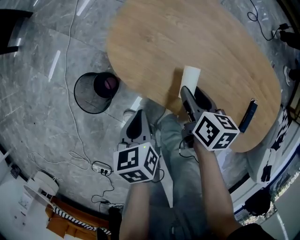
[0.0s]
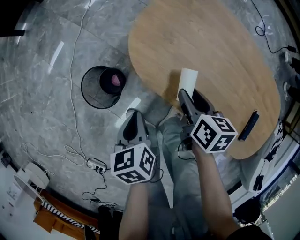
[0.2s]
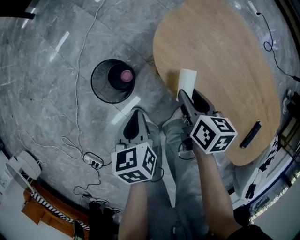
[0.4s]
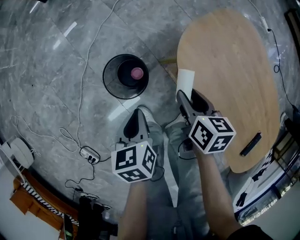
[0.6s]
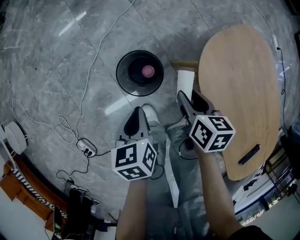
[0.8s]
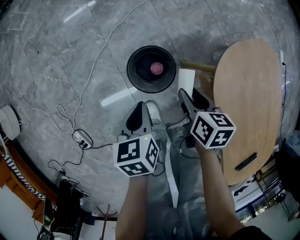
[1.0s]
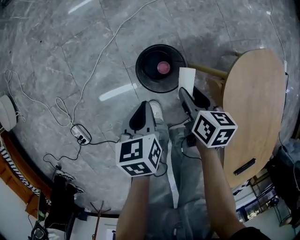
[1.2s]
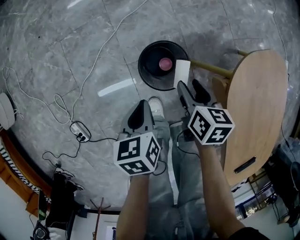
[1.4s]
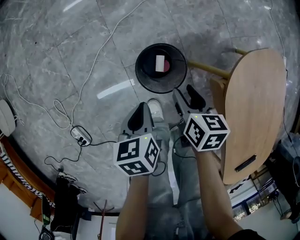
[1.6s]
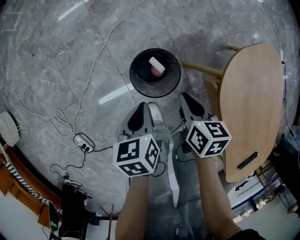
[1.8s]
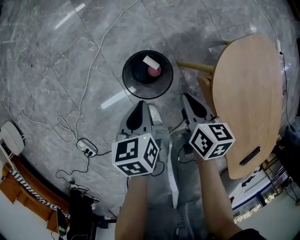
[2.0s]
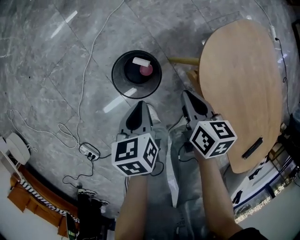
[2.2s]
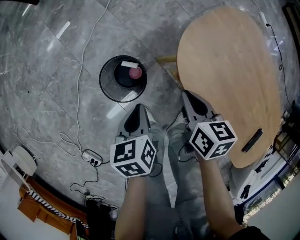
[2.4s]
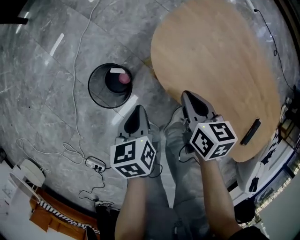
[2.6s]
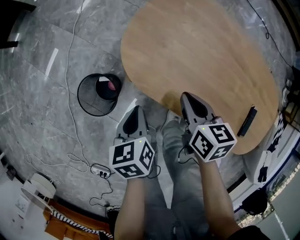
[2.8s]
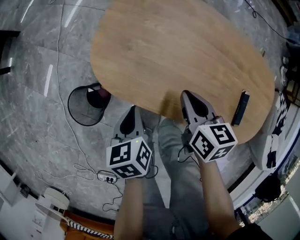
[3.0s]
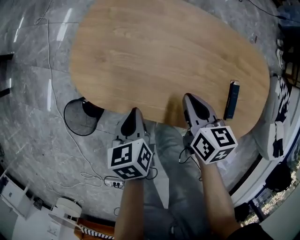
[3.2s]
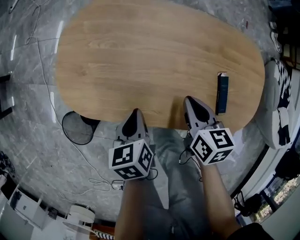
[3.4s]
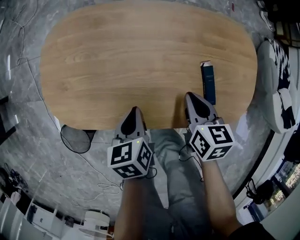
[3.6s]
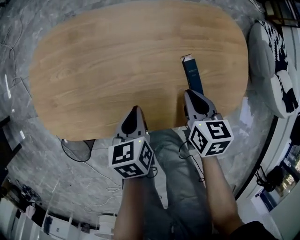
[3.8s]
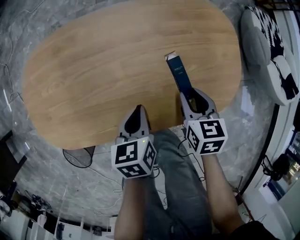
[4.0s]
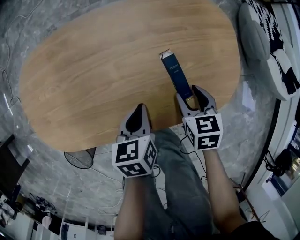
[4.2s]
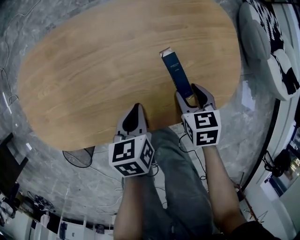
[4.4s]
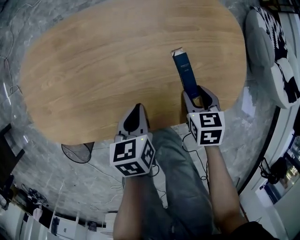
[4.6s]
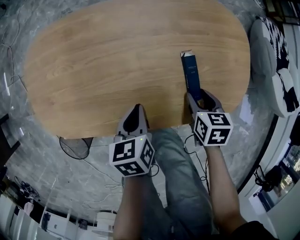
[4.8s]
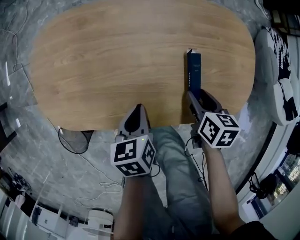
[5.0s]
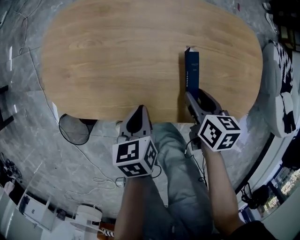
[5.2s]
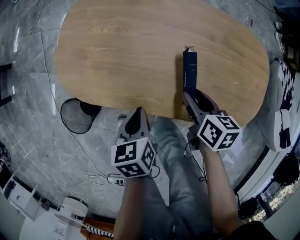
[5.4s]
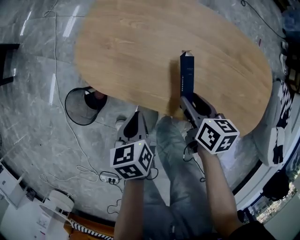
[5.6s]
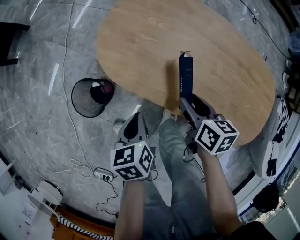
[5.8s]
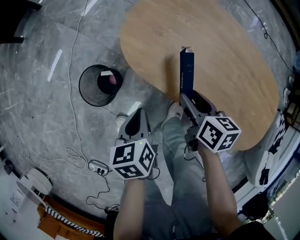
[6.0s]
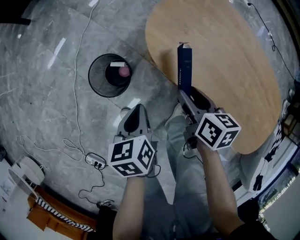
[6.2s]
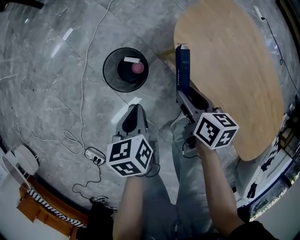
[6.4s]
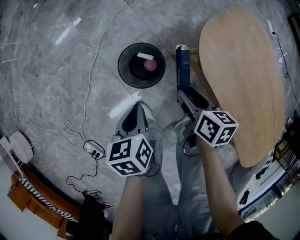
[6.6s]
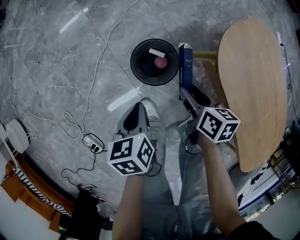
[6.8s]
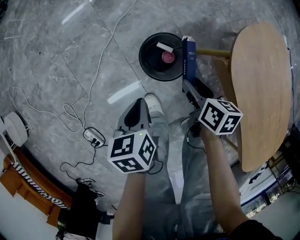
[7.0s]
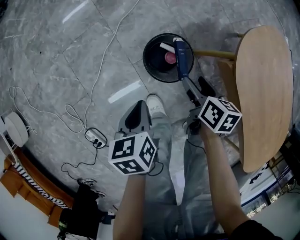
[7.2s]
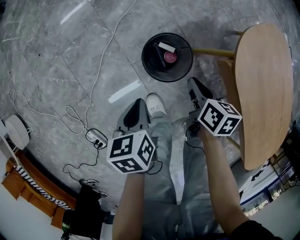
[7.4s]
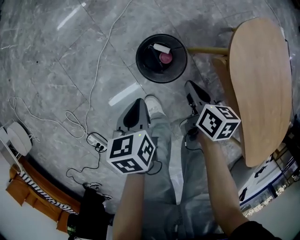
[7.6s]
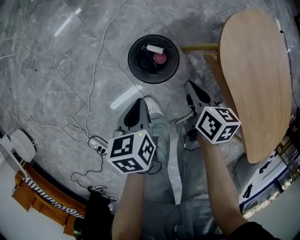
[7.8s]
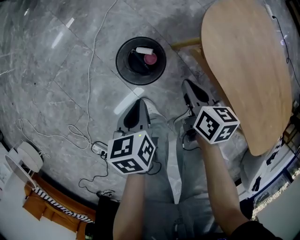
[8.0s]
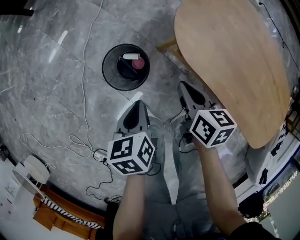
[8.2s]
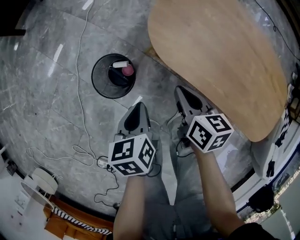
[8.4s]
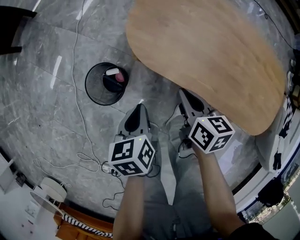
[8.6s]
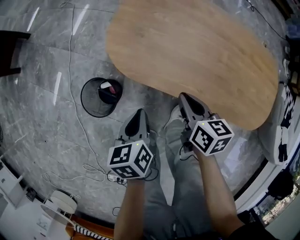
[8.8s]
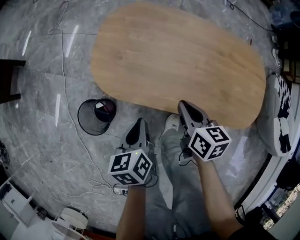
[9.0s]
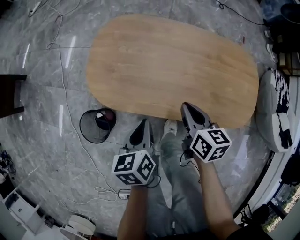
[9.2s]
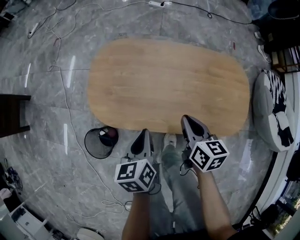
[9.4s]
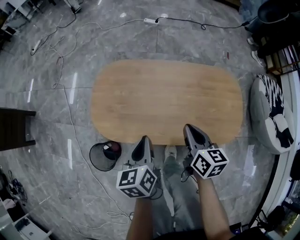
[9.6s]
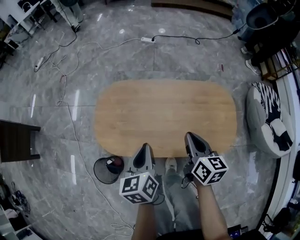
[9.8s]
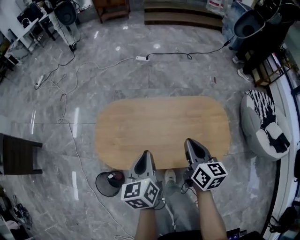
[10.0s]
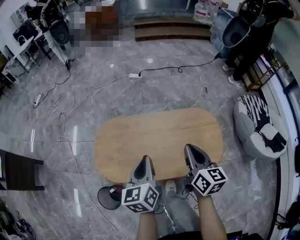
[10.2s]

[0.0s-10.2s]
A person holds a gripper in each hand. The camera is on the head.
0.0s to 1.4s: The left gripper ends up some 35 cm from where it was, and changes its angle by some 40 degrees. The right gripper moves approximately 40 cm, and changes its angle by about 40 degrees.
1.4s to 3.0s: The left gripper moves some 40 cm, and rotates approximately 40 degrees. The right gripper ends up roughly 40 cm from where it was, rotates approximately 40 degrees, and closes its fingers.
3.0s to 4.4s: The right gripper changes place by roughly 40 cm, swivels approximately 30 degrees, and opens; the left gripper changes place by some 35 cm, and changes its angle by roughly 40 degrees.
4.4s to 5.8s: The left gripper shifts by roughly 35 cm, and turns by approximately 40 degrees. Meanwhile the right gripper moves roughly 35 cm, and rotates roughly 40 degrees.
5.8s to 7.2s: The pair of grippers is taken roughly 40 cm. The left gripper changes its angle by roughly 30 degrees; the right gripper turns by roughly 30 degrees.
7.2s to 8.8s: The right gripper changes place by roughly 35 cm, rotates some 30 degrees, and closes. The left gripper moves roughly 35 cm, and rotates some 40 degrees.
8.8s to 10.2s: The two grippers go some 35 cm upward. The left gripper turns by approximately 30 degrees. Meanwhile the right gripper swivels about 40 degrees.

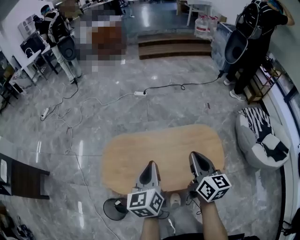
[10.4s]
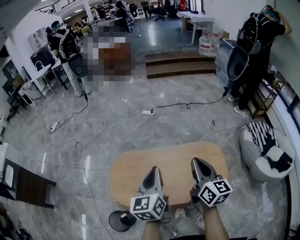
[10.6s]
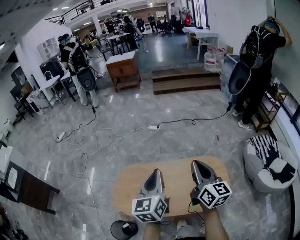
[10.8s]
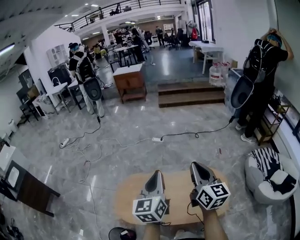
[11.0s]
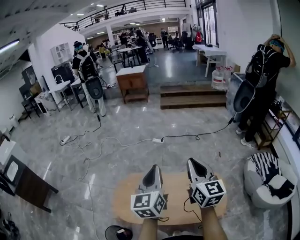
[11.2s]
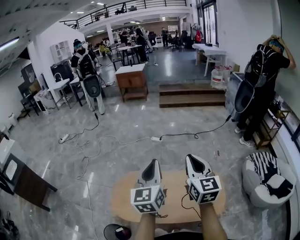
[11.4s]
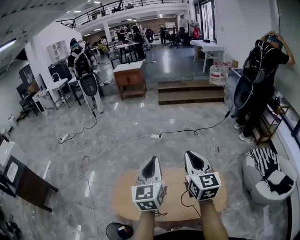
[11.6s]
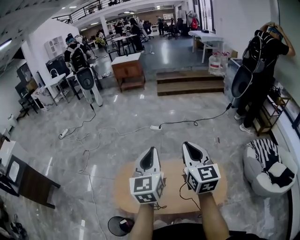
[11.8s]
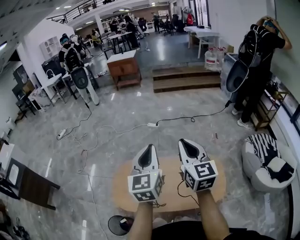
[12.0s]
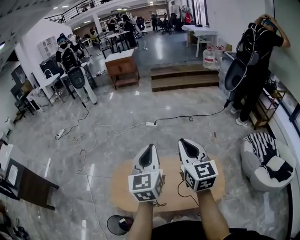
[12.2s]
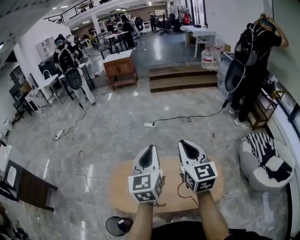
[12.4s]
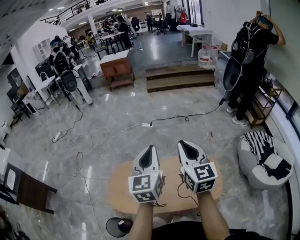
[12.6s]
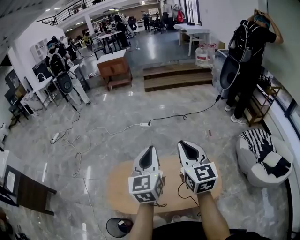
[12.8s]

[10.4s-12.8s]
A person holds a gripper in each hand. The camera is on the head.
10.4s to 11.6s: Both grippers move upward, approximately 20 cm. The right gripper rotates roughly 30 degrees; the left gripper changes its angle by some 30 degrees.
11.6s to 12.8s: The right gripper moves roughly 5 cm, while the left gripper goes some 5 cm to the right.

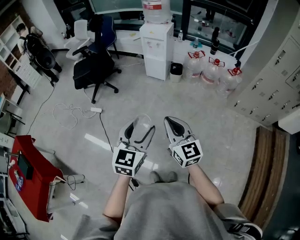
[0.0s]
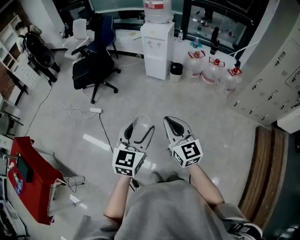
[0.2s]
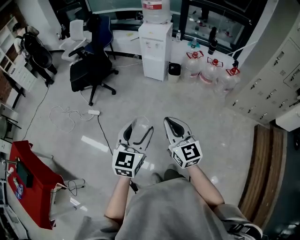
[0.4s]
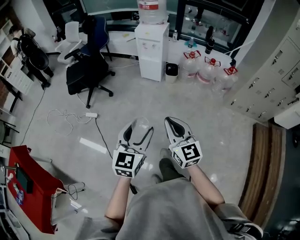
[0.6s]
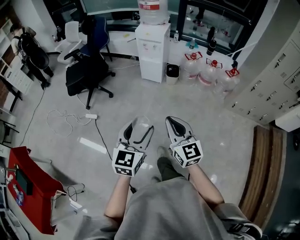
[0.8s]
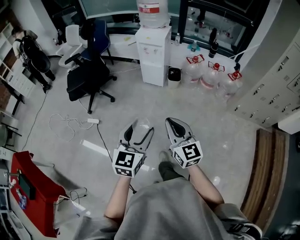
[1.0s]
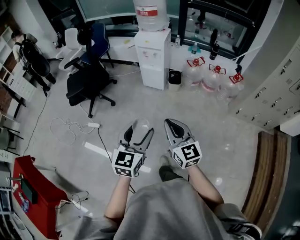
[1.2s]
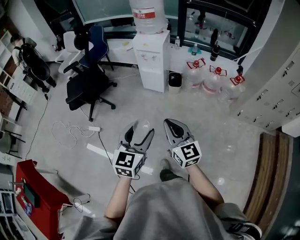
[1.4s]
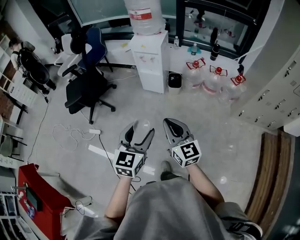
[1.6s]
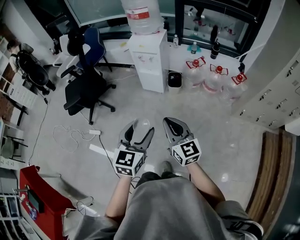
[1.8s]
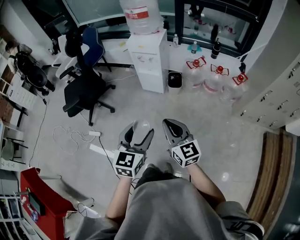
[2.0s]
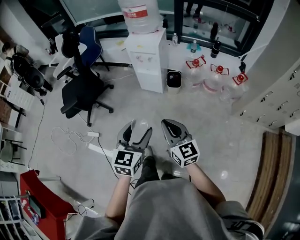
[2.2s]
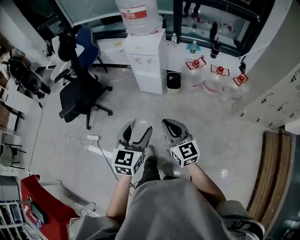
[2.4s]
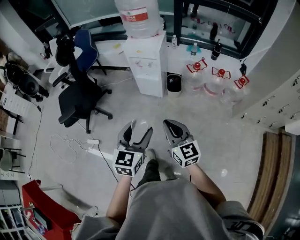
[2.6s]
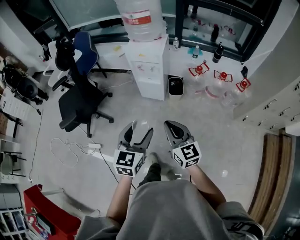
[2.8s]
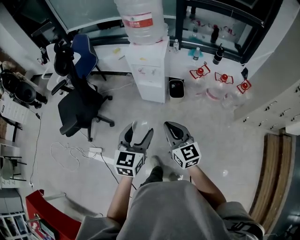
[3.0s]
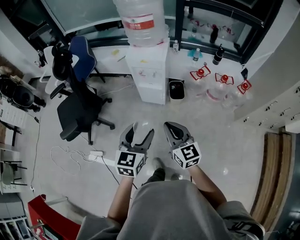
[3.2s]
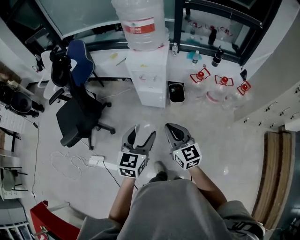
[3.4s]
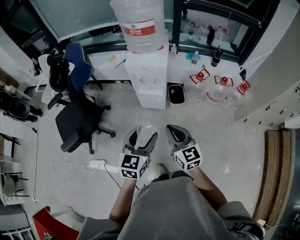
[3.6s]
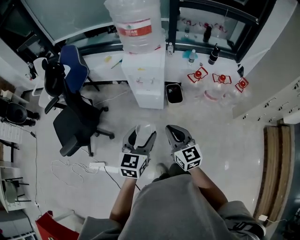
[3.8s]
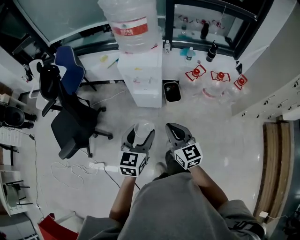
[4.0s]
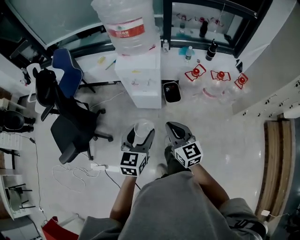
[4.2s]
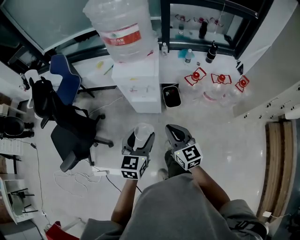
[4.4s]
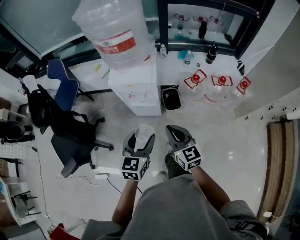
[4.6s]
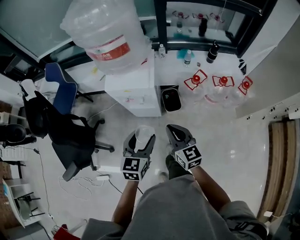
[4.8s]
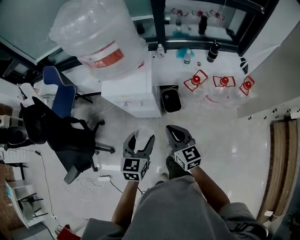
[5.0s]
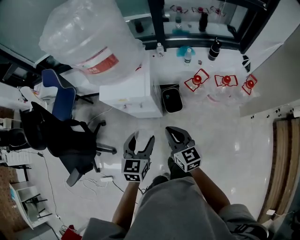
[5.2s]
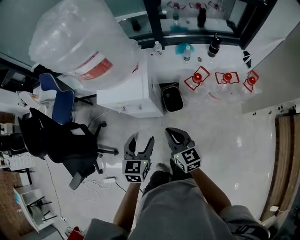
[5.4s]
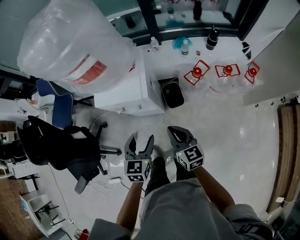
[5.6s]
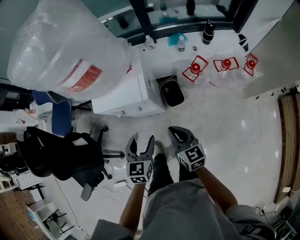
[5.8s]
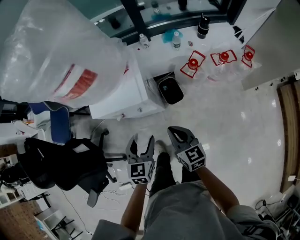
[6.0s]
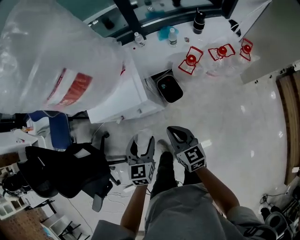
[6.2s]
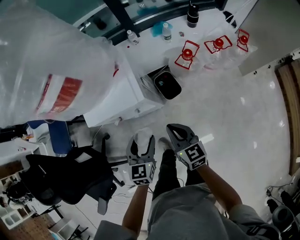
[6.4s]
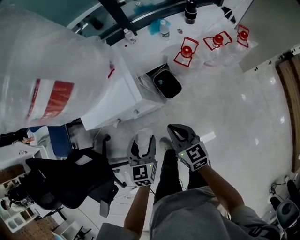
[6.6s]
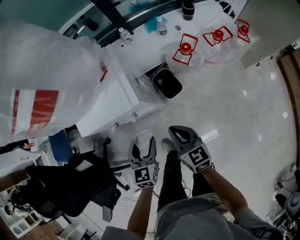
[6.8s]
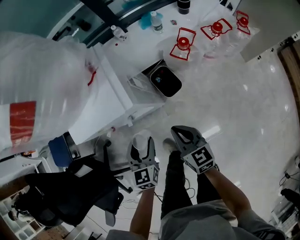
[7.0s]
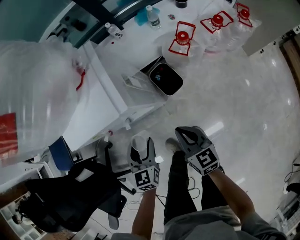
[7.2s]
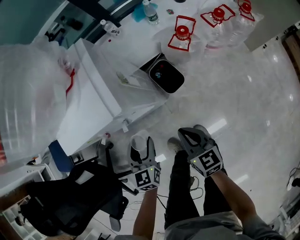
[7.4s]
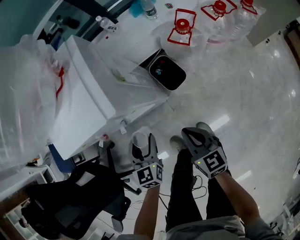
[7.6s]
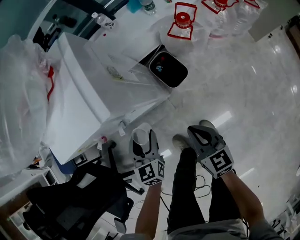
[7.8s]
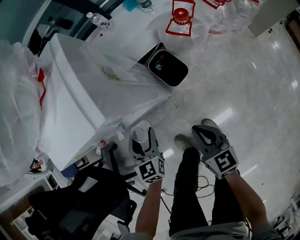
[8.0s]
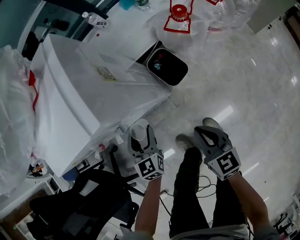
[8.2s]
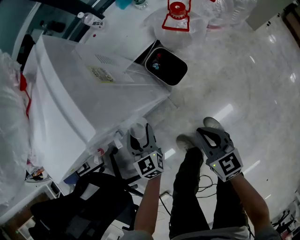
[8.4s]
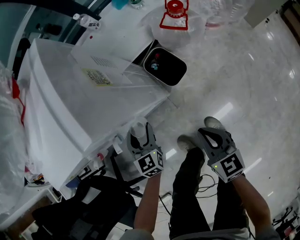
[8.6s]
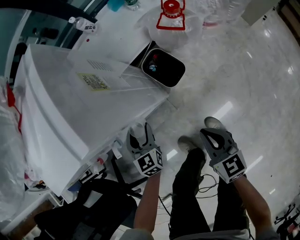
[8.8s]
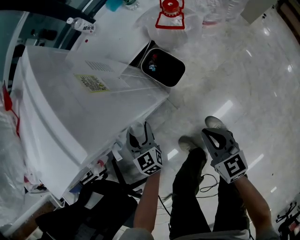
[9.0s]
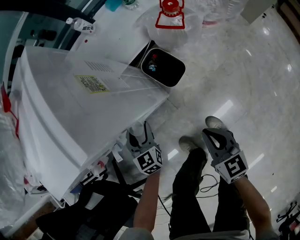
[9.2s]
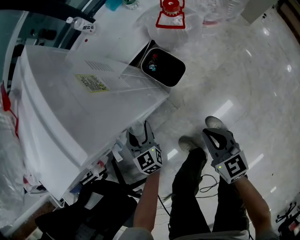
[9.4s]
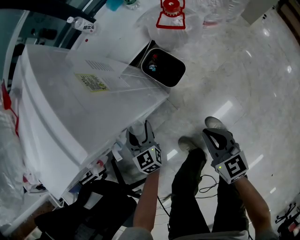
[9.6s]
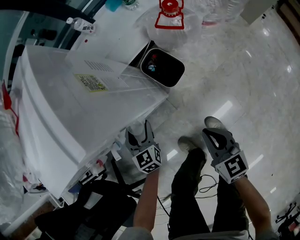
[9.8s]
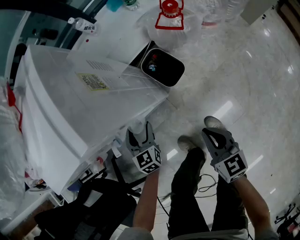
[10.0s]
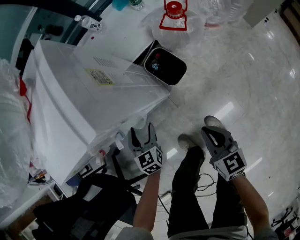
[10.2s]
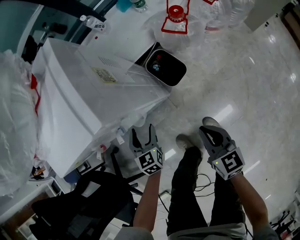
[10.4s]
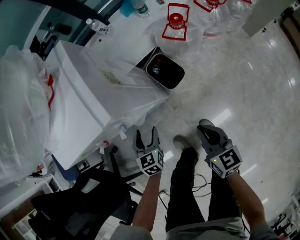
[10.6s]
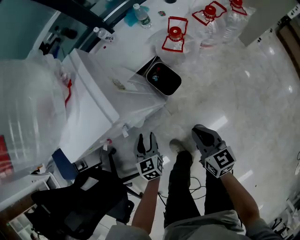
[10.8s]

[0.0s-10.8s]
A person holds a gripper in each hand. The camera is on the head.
0.0s to 1.6s: The grippers both shift forward by approximately 25 cm.
1.6s to 3.0s: The two grippers go about 25 cm forward.
3.0s to 4.6s: Both grippers move forward, roughly 25 cm.
4.6s to 6.2s: Both grippers move forward and downward, about 20 cm.
6.2s to 7.8s: Both grippers travel together downward, approximately 20 cm.
7.8s to 9.2s: The left gripper travels downward and forward by about 15 cm. The right gripper is displaced downward by some 5 cm.
9.2s to 10.8s: The right gripper heads upward, covering roughly 10 cm, while the left gripper is displaced upward and backward by some 15 cm.
